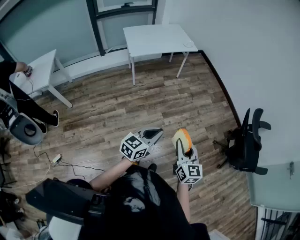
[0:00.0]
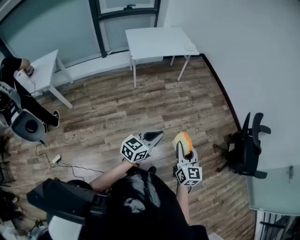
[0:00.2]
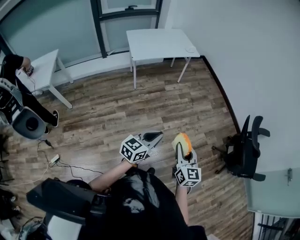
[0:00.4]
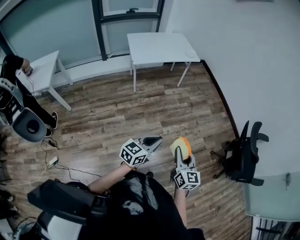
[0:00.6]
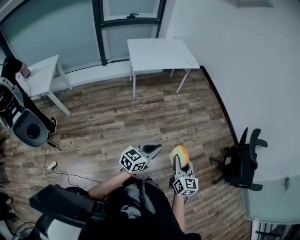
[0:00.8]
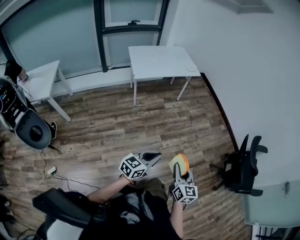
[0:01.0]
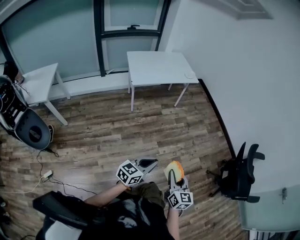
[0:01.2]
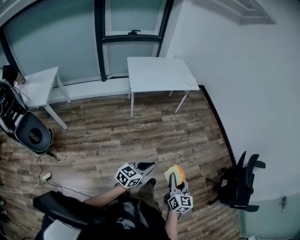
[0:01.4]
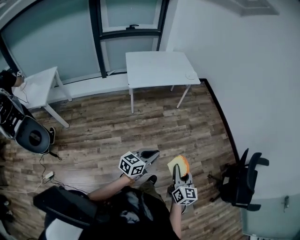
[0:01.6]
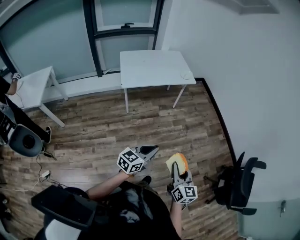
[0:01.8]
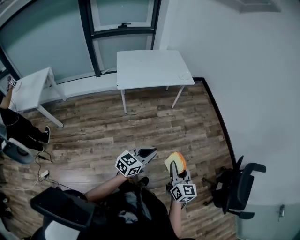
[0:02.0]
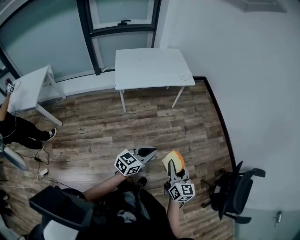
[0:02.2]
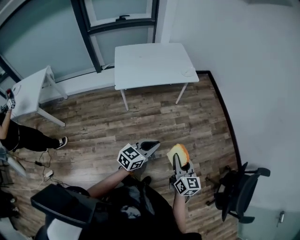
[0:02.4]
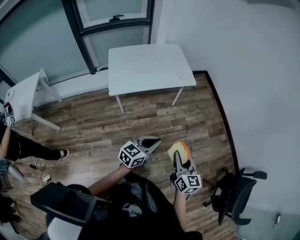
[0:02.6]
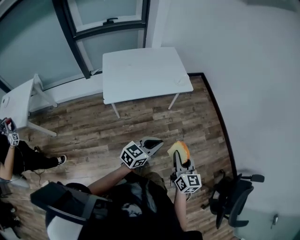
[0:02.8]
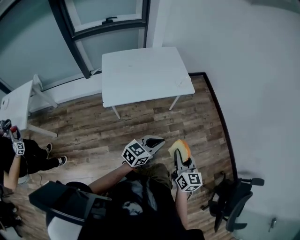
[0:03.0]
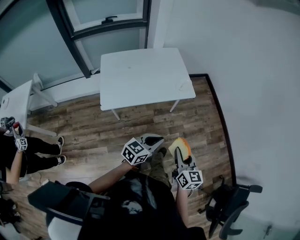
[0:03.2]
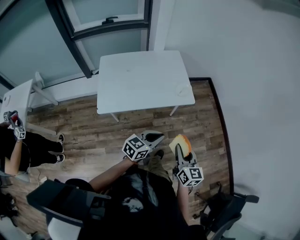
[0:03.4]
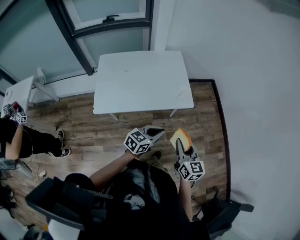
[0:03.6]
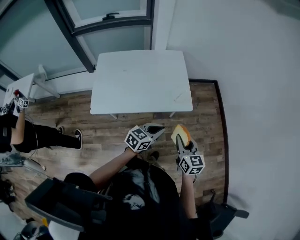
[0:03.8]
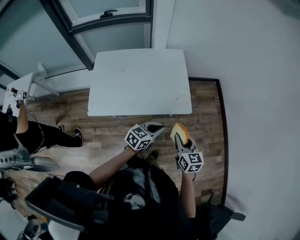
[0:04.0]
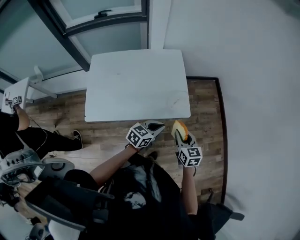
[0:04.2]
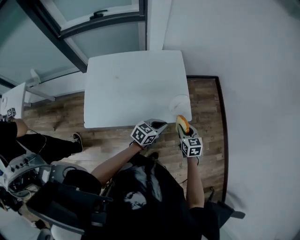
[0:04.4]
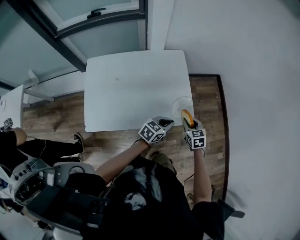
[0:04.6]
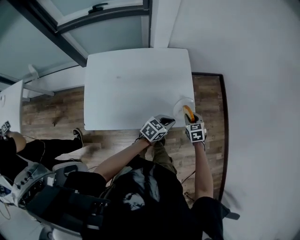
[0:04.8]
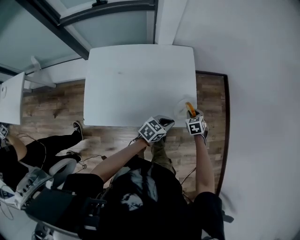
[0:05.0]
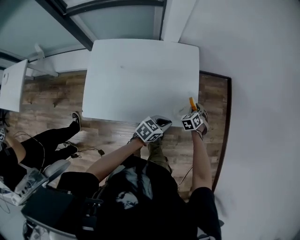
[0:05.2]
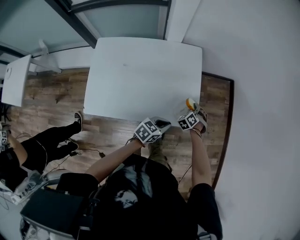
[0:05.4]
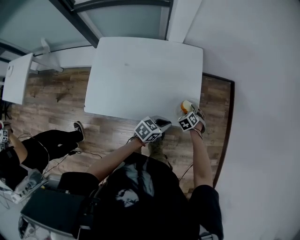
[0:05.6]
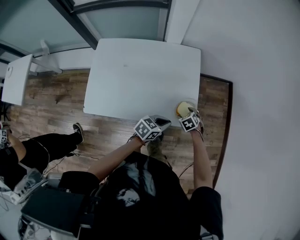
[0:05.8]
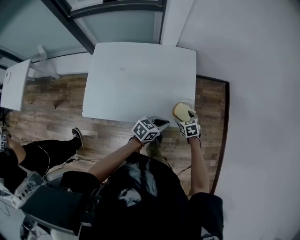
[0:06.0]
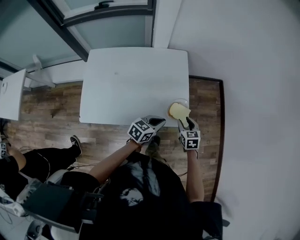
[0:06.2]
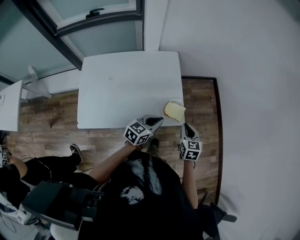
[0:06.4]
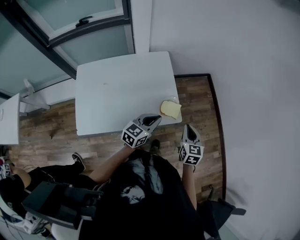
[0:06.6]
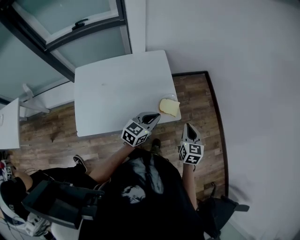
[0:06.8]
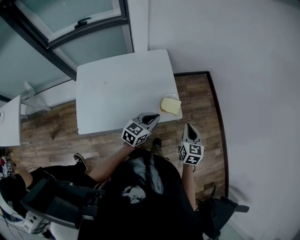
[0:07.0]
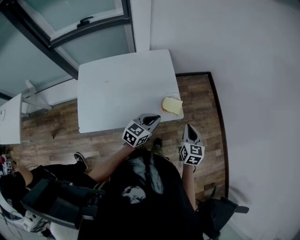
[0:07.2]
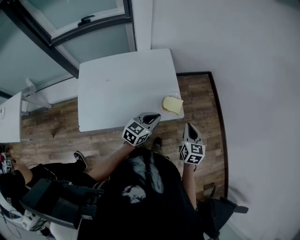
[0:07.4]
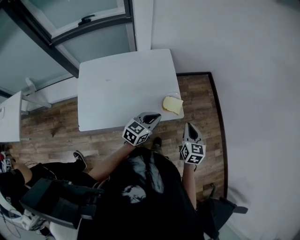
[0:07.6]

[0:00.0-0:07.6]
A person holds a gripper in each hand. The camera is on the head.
0.0 to 1.6 s: The two grippers go roughly 15 cm forward.
1.6 to 3.0 s: The pair of grippers is taken forward, roughly 40 cm.
3.0 to 4.6 s: The two grippers travel together, forward, some 50 cm. The right gripper rotates about 40 degrees.
4.6 to 6.0 s: The right gripper is displaced downward by roughly 10 cm, and opens up.
6.0 to 7.6 s: The left gripper travels upward by some 10 cm. Meanwhile the right gripper goes about 25 cm upward, to the right and backward, points its fingers about 30 degrees further upward, and closes its fingers.

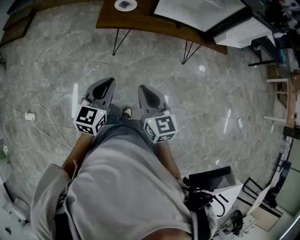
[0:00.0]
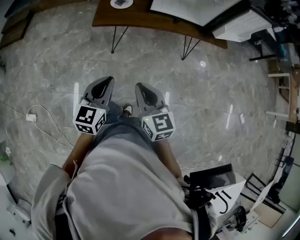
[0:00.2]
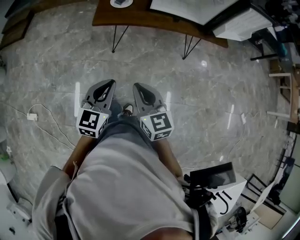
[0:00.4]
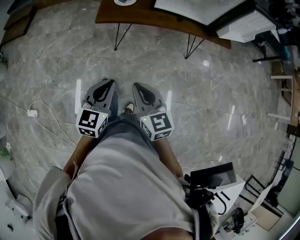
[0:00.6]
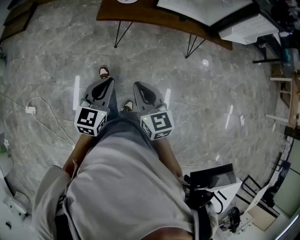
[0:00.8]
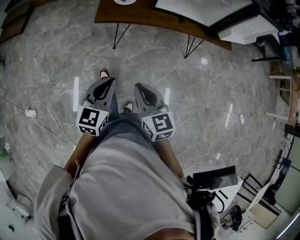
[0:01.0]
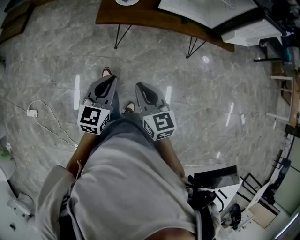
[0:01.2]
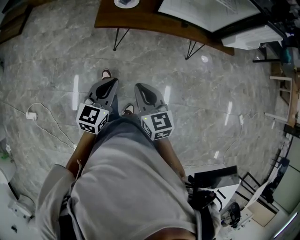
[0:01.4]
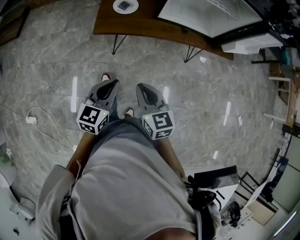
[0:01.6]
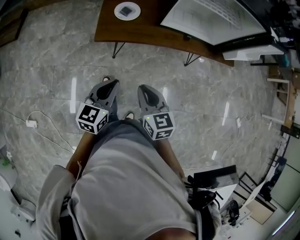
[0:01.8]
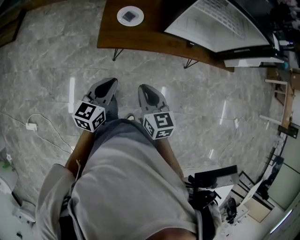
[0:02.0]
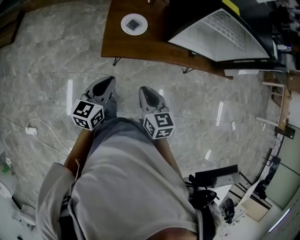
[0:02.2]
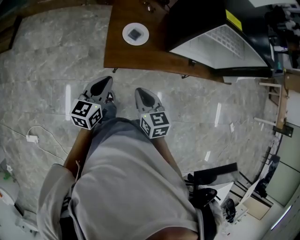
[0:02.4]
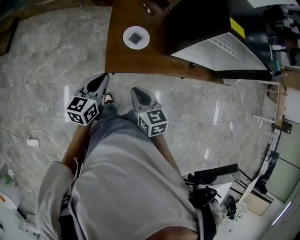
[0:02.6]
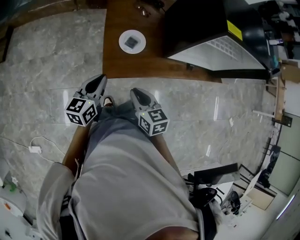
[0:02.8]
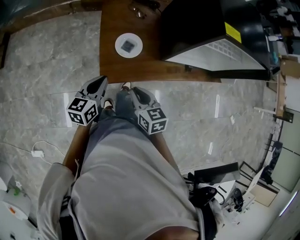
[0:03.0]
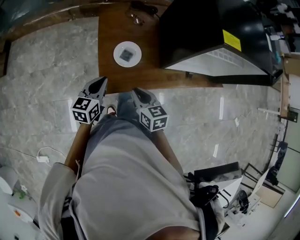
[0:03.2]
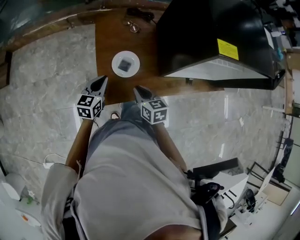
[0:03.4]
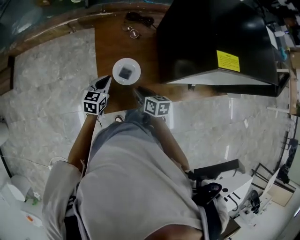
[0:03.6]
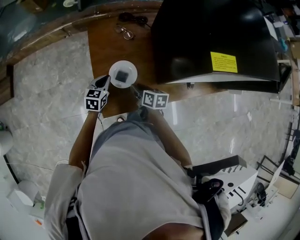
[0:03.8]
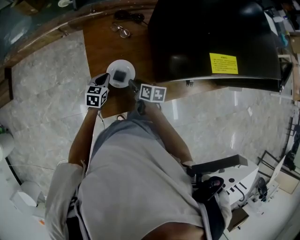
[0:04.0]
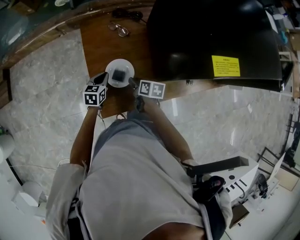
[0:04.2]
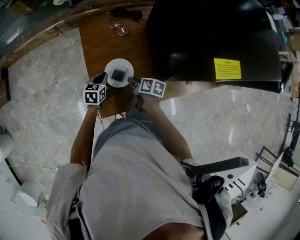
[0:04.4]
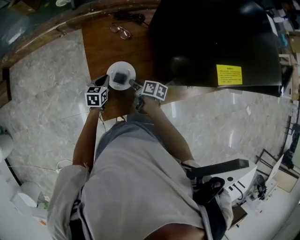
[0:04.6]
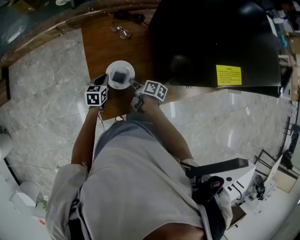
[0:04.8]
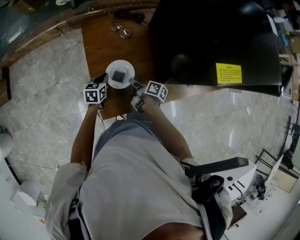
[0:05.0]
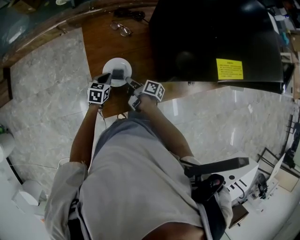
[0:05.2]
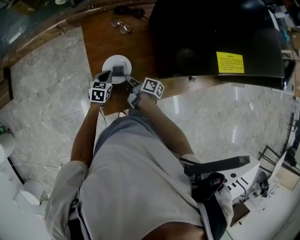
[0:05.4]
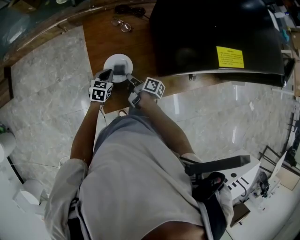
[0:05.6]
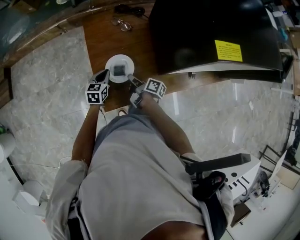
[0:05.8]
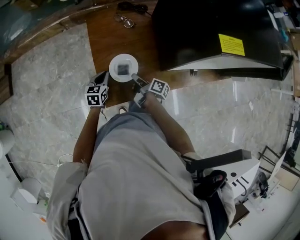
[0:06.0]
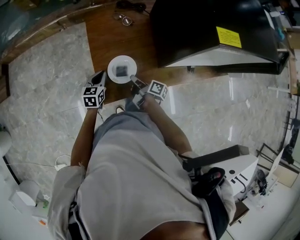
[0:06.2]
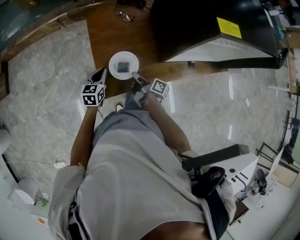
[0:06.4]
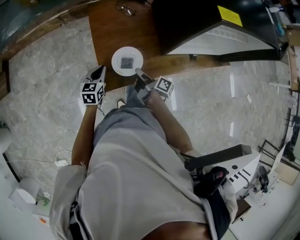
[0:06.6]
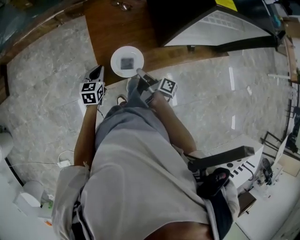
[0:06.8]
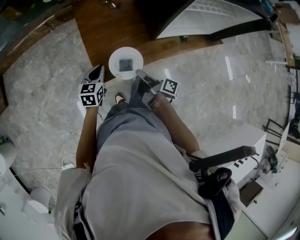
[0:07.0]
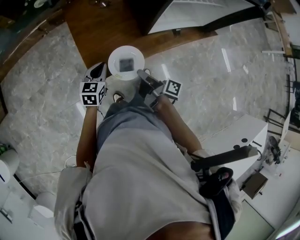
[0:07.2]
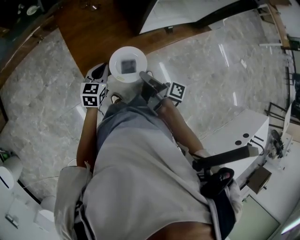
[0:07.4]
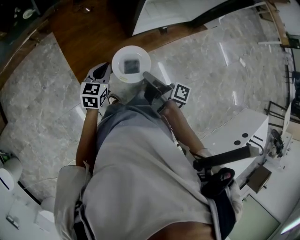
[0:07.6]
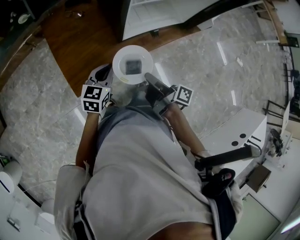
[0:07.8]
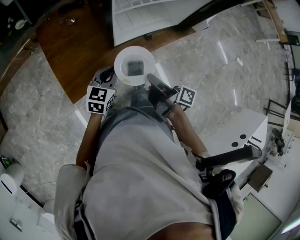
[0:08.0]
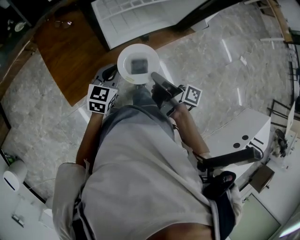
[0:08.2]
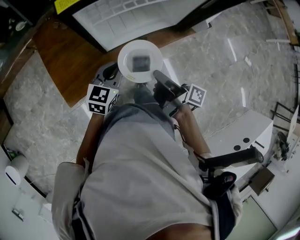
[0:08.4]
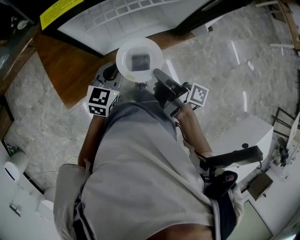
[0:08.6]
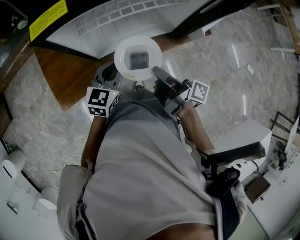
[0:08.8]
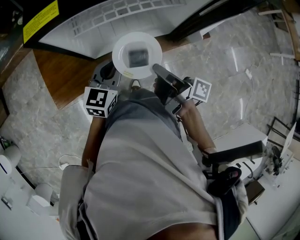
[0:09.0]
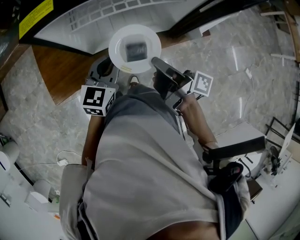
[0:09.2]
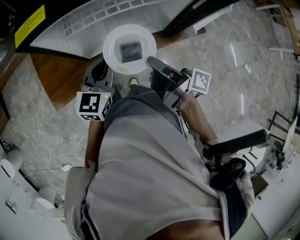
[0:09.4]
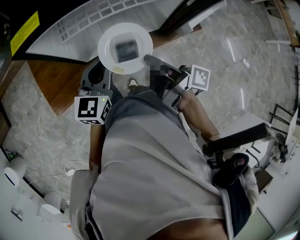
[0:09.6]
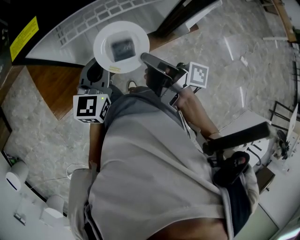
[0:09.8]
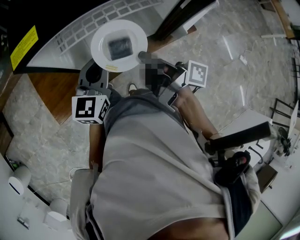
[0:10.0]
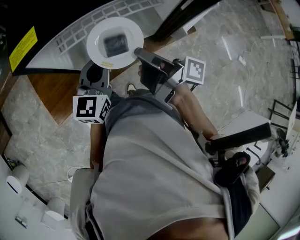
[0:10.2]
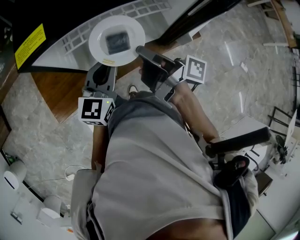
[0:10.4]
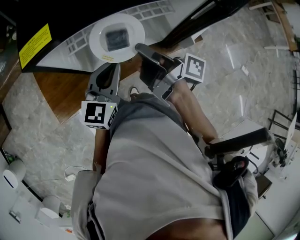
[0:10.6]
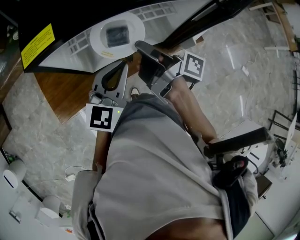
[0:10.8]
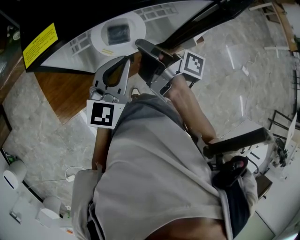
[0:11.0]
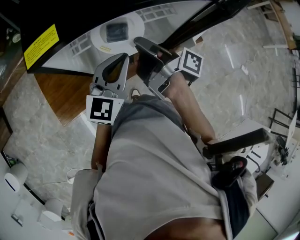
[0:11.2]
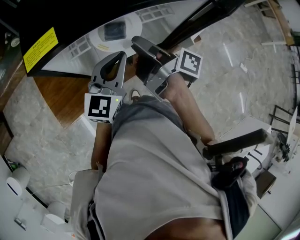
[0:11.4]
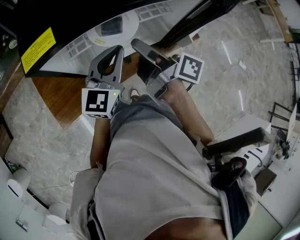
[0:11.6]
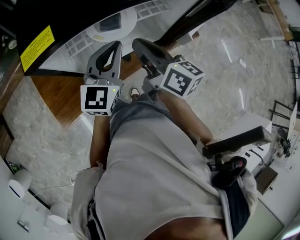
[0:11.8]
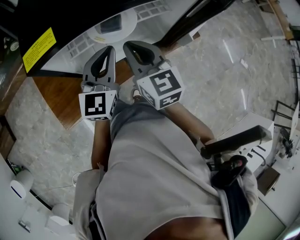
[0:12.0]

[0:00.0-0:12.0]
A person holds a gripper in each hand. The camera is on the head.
0.0 to 1.6 s: Both grippers move forward, about 20 cm.
1.6 to 3.0 s: The two grippers travel together, forward and to the left, about 50 cm.
3.0 to 4.4 s: Both grippers travel together forward and downward, some 35 cm. The left gripper turns by approximately 30 degrees, while the right gripper twists roughly 50 degrees clockwise, seen from behind, and opens its fingers.
4.4 to 6.0 s: The two grippers go about 5 cm backward. The right gripper changes its angle by roughly 30 degrees, and closes its fingers.
6.0 to 7.6 s: The two grippers go approximately 30 cm backward, to the right and upward. The left gripper turns by some 20 degrees.
7.6 to 9.0 s: The pair of grippers is taken to the right and forward, approximately 40 cm.
9.0 to 10.4 s: The right gripper moves forward and upward, roughly 10 cm, while the left gripper is displaced upward by roughly 5 cm.
10.4 to 12.0 s: The right gripper twists about 80 degrees counterclockwise, seen from behind, and opens, then closes once more; the left gripper moves roughly 5 cm.

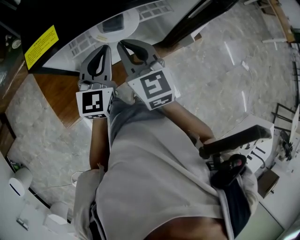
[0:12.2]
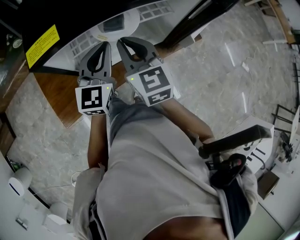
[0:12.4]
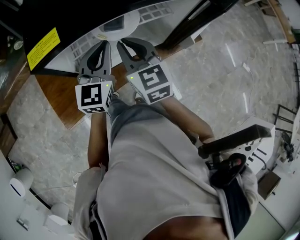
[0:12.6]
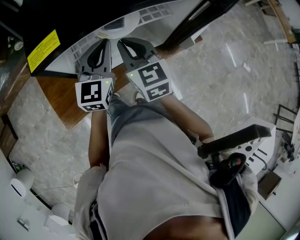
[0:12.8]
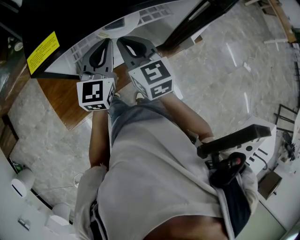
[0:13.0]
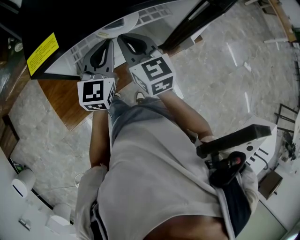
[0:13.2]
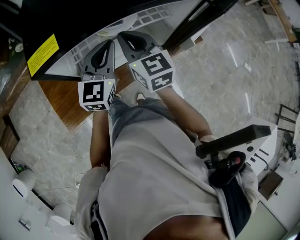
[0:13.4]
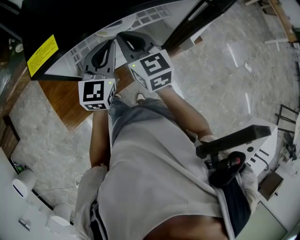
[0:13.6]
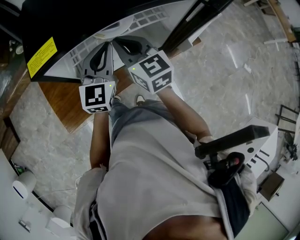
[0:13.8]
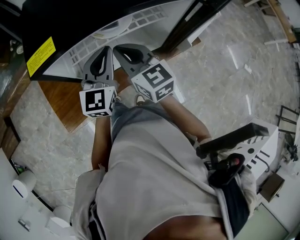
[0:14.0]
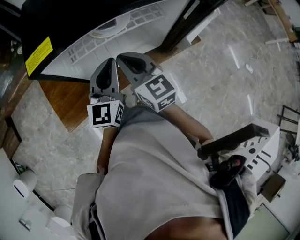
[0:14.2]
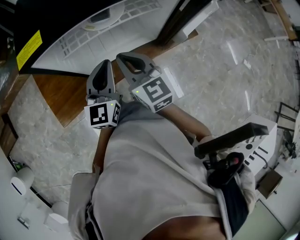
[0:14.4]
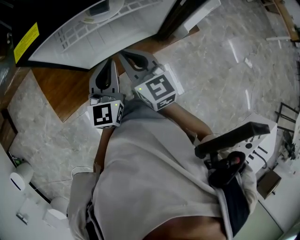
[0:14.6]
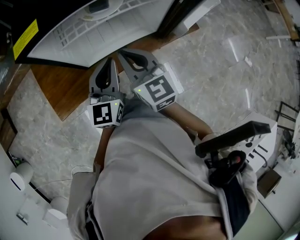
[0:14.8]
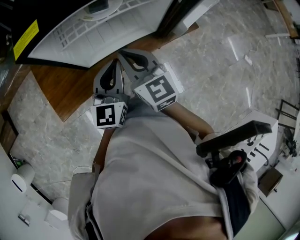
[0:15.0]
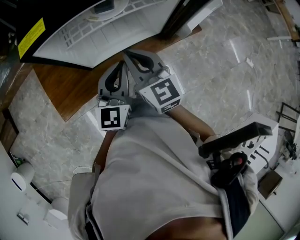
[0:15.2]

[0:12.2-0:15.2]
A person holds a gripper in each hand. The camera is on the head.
12.2 to 13.8 s: The grippers move only a little.
13.8 to 15.2 s: Both grippers travel together backward, roughly 10 cm.

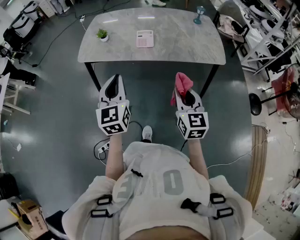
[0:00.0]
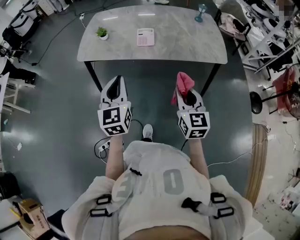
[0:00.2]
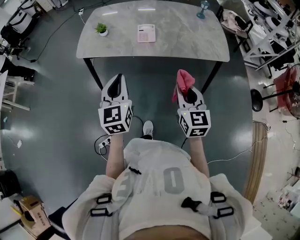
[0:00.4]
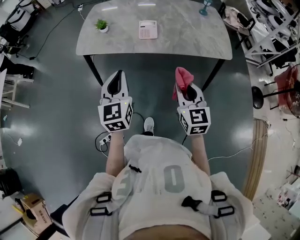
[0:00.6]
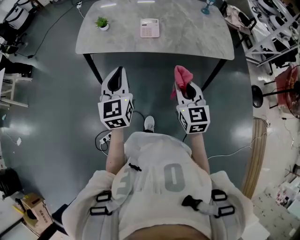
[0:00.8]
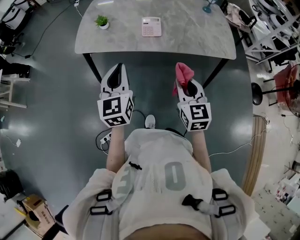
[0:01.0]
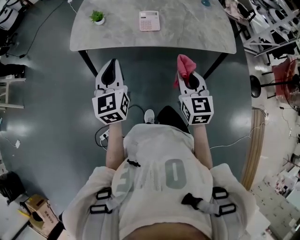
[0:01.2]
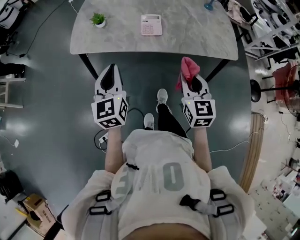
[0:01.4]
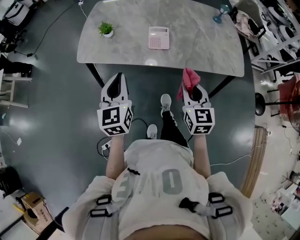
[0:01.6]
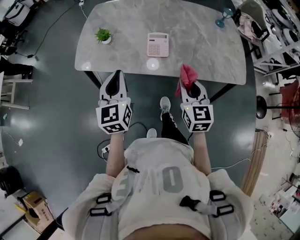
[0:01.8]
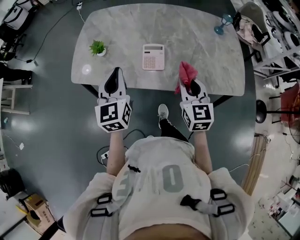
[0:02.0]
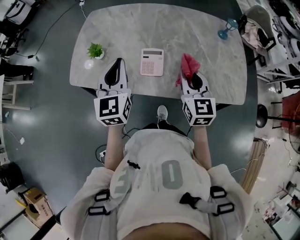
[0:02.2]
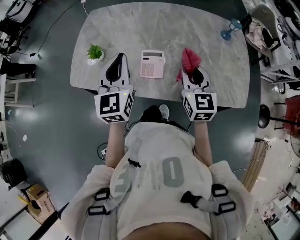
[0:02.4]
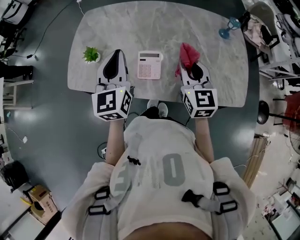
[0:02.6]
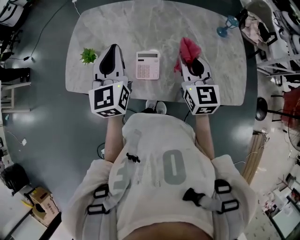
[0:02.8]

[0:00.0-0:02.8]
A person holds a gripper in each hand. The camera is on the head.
0.0 to 1.4 s: The left gripper shifts roughly 15 cm forward, to the left and downward. The right gripper shifts about 15 cm forward.
1.4 to 2.8 s: Both grippers travel together forward, about 35 cm.
